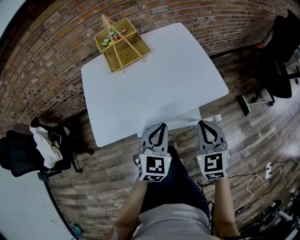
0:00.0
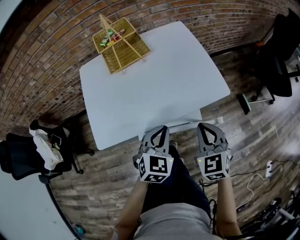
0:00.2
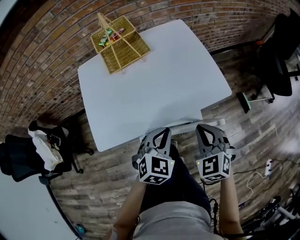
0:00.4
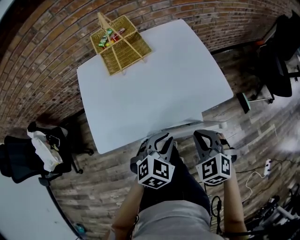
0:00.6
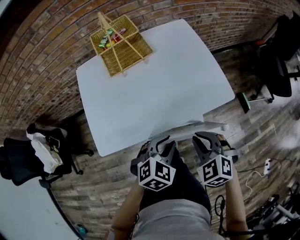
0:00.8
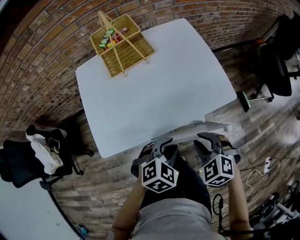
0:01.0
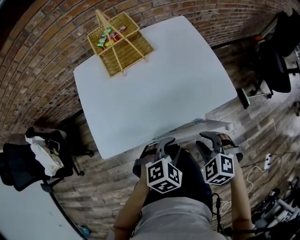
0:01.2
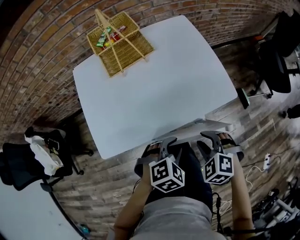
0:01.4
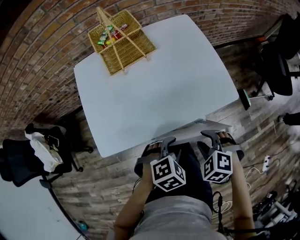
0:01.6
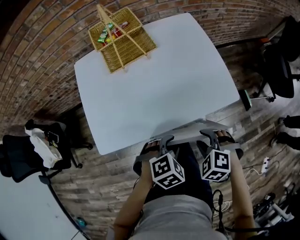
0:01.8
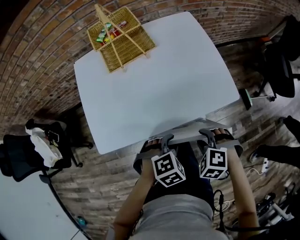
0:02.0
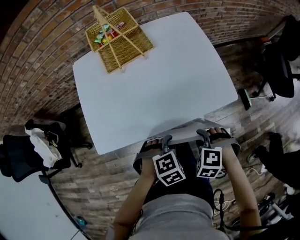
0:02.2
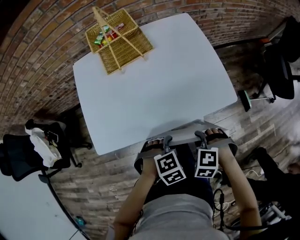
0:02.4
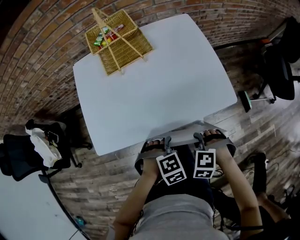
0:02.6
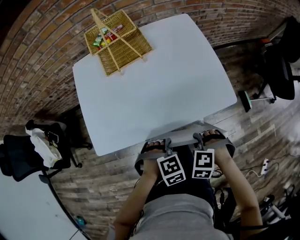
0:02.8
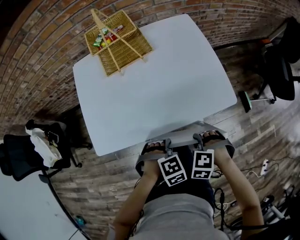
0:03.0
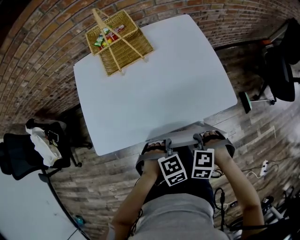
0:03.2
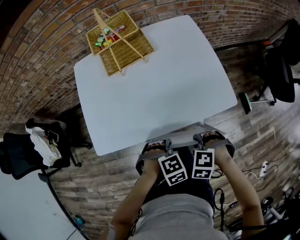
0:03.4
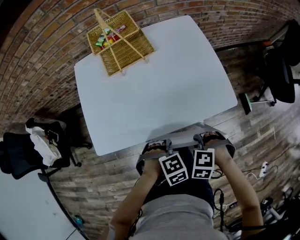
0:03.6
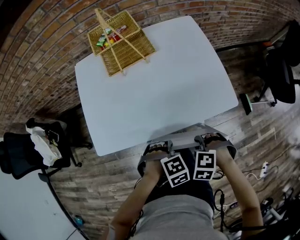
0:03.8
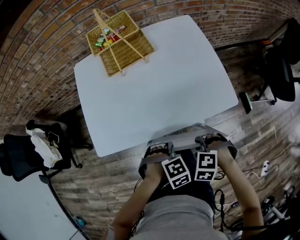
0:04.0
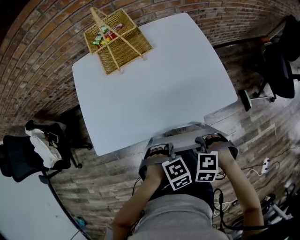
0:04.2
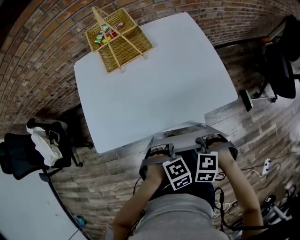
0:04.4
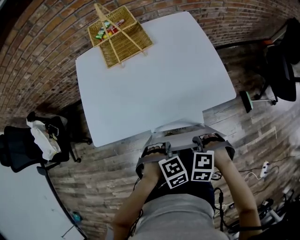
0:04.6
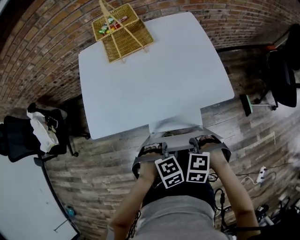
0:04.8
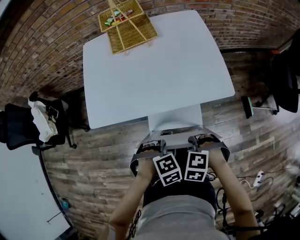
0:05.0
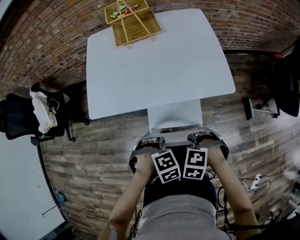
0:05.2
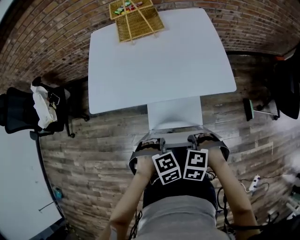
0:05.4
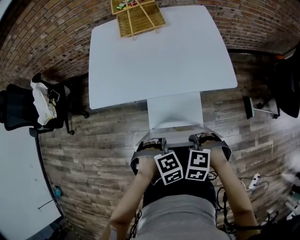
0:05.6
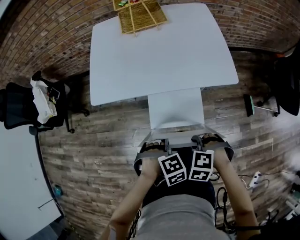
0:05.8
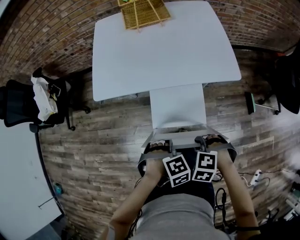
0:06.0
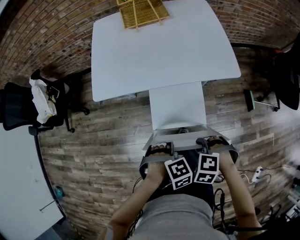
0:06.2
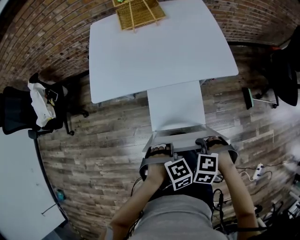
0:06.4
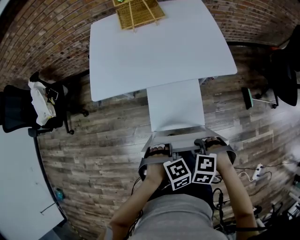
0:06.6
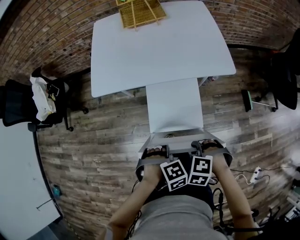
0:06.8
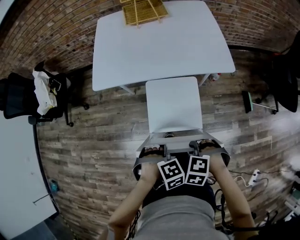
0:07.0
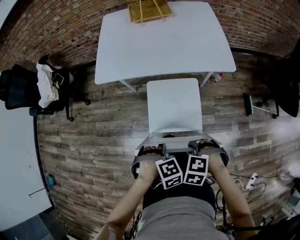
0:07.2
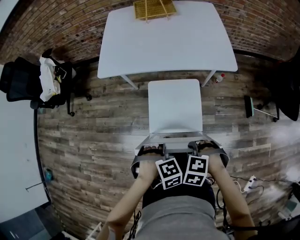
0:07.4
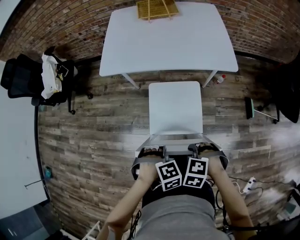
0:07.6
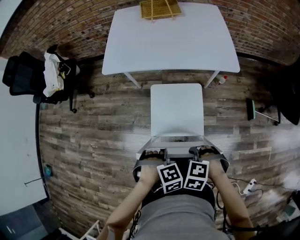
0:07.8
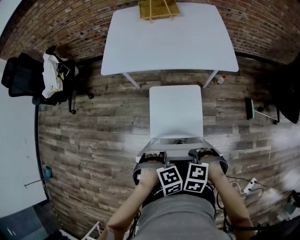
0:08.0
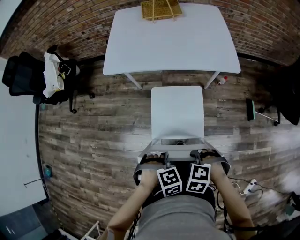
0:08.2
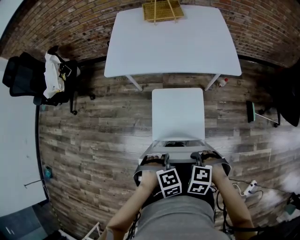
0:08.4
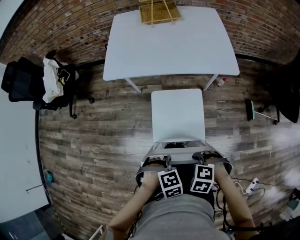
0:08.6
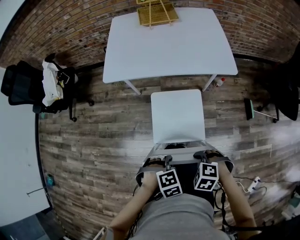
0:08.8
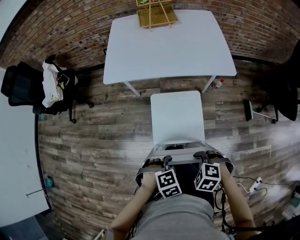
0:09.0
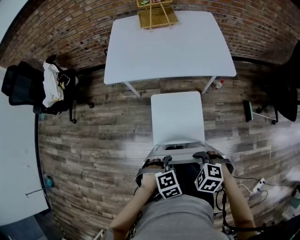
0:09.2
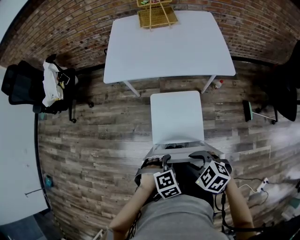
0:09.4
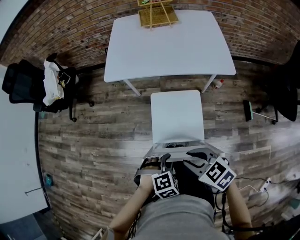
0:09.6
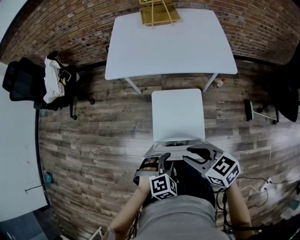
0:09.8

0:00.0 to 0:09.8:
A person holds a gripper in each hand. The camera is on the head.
0:00.0 to 0:01.4: Both grippers travel together downward, roughly 5 cm. The right gripper angles its fingers downward, by some 30 degrees, and opens its fingers. Meanwhile the left gripper tips its fingers downward by some 30 degrees, and opens its fingers.
0:01.4 to 0:02.8: Both grippers travel together downward, approximately 5 cm. The left gripper changes its angle by approximately 20 degrees. Meanwhile the right gripper rotates approximately 30 degrees.
0:02.8 to 0:04.2: There are only small adjustments of the grippers.
0:04.2 to 0:05.6: The right gripper changes place by approximately 15 cm. Meanwhile the left gripper moves some 15 cm.
0:05.6 to 0:07.0: The right gripper shifts by some 10 cm, while the left gripper moves roughly 10 cm.
0:07.0 to 0:08.4: The right gripper shifts by about 10 cm. Meanwhile the left gripper moves some 10 cm.
0:08.4 to 0:09.8: The right gripper shifts approximately 10 cm upward, and points its fingers some 50 degrees further upward. Meanwhile the left gripper changes its angle by roughly 20 degrees.

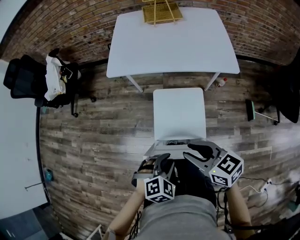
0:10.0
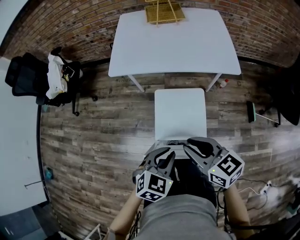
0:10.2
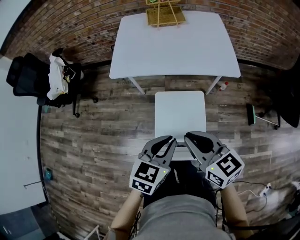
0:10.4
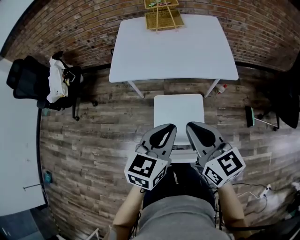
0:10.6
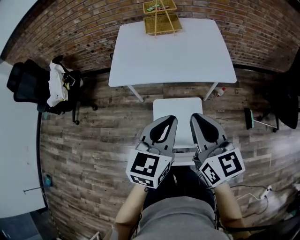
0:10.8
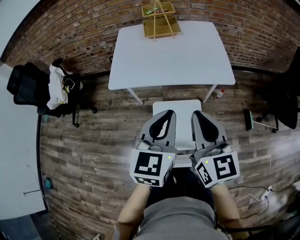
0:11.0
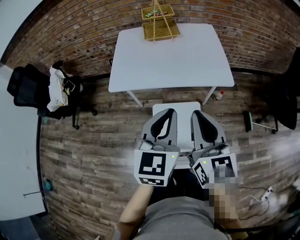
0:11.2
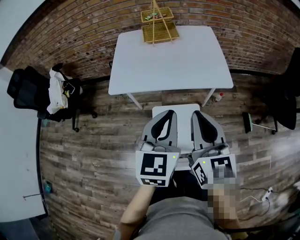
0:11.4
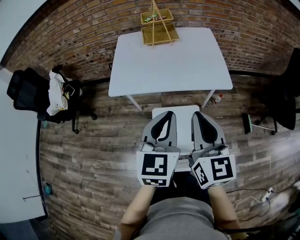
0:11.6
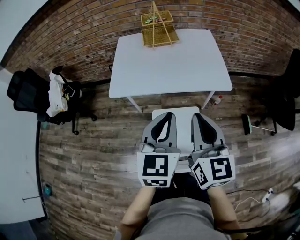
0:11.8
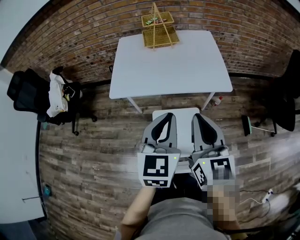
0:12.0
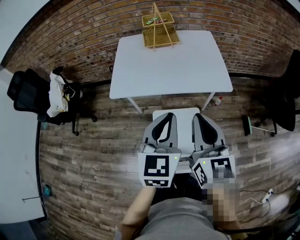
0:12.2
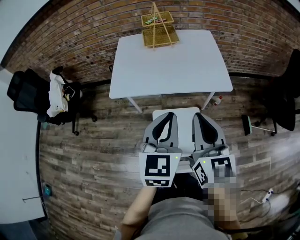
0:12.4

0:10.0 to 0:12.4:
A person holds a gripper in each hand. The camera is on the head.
0:10.0 to 0:11.2: The left gripper goes approximately 30 cm upward and forward, tips its fingers upward by about 40 degrees, and closes its fingers. Meanwhile the right gripper is displaced upward and forward by approximately 20 cm, changes its angle by about 50 degrees, and closes.
0:11.2 to 0:12.4: Neither gripper changes place.

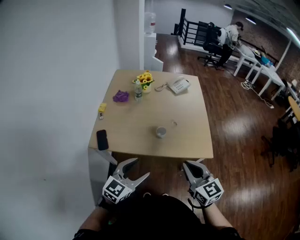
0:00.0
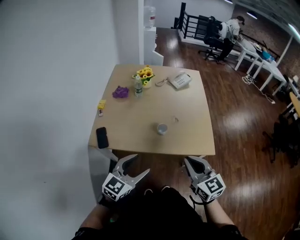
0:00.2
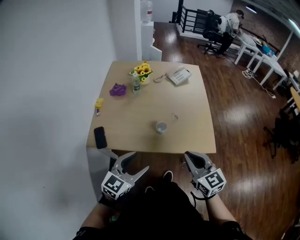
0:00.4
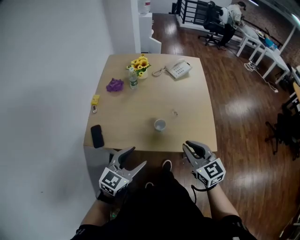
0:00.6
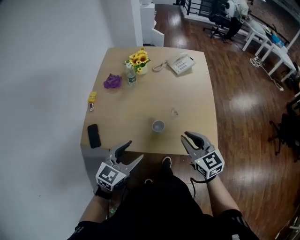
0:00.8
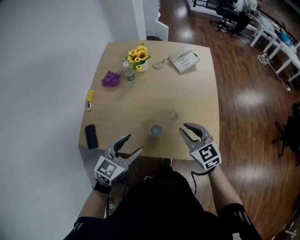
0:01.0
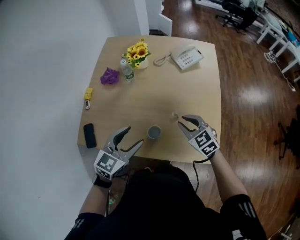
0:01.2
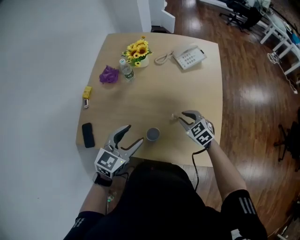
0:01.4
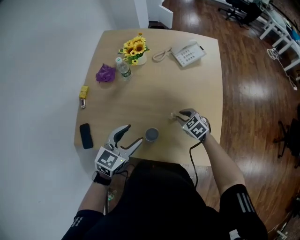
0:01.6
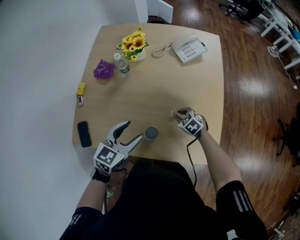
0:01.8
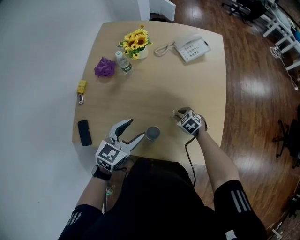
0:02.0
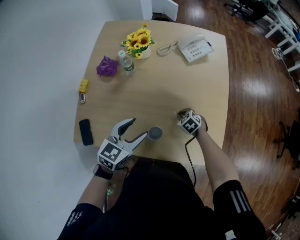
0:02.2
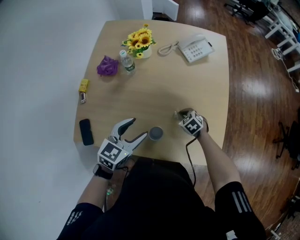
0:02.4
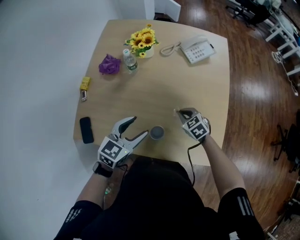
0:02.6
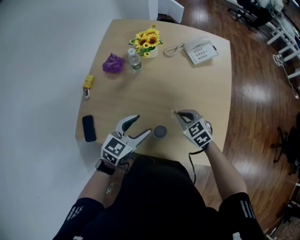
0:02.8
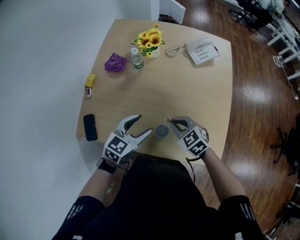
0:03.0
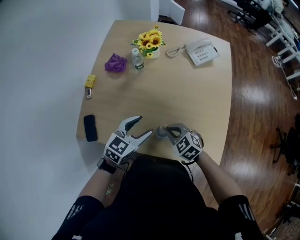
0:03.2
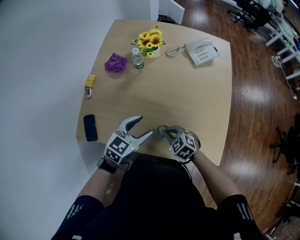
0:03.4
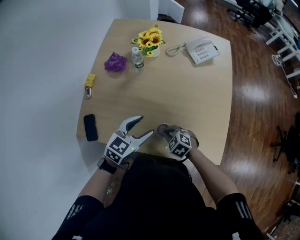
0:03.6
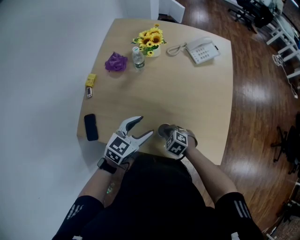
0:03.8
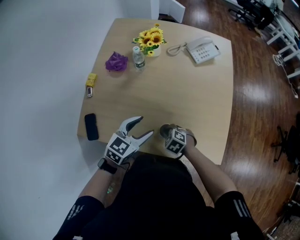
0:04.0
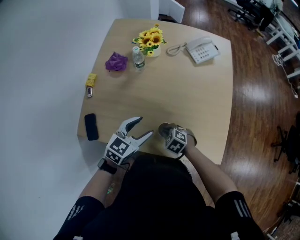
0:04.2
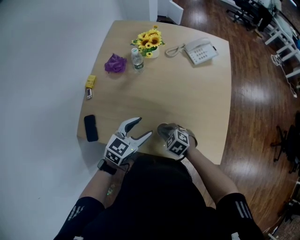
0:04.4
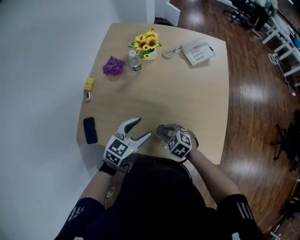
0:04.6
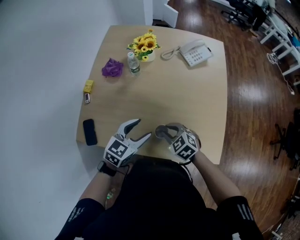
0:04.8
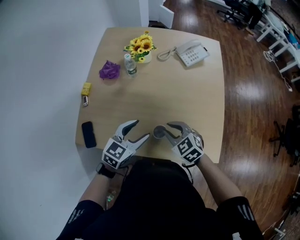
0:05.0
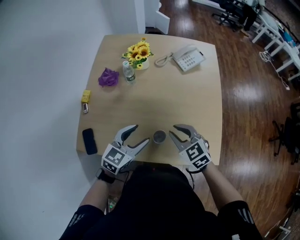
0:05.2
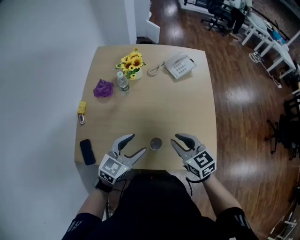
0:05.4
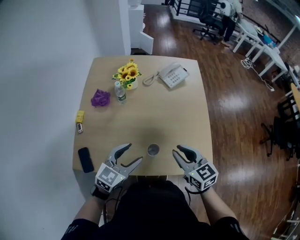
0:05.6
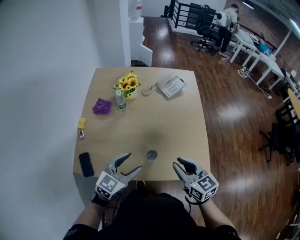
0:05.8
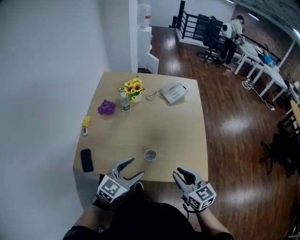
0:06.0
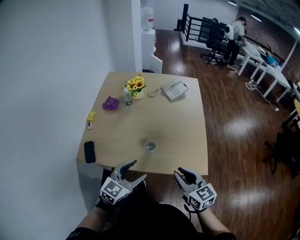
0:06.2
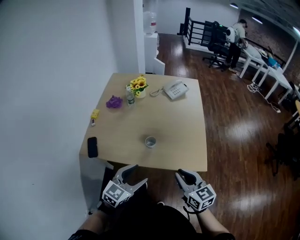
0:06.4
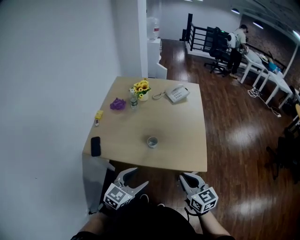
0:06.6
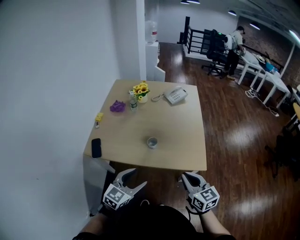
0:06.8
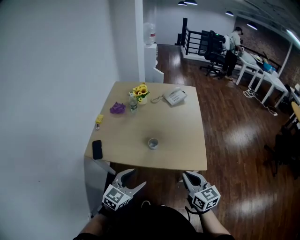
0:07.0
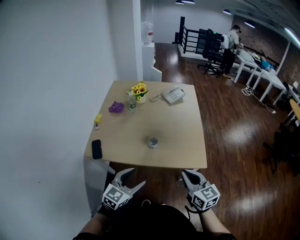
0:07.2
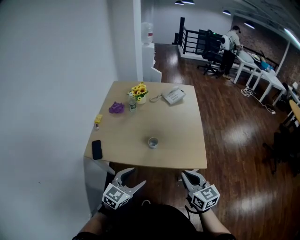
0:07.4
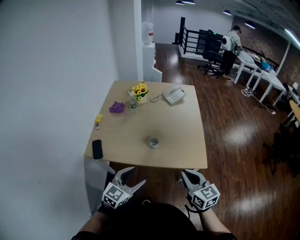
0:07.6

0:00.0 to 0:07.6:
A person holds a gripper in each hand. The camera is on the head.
0:00.0 to 0:01.6: The left gripper travels forward by about 35 cm. Meanwhile the right gripper is displaced forward and downward by roughly 50 cm, tips its fingers downward by some 40 degrees, and opens up.
0:01.6 to 0:03.0: The left gripper moves approximately 5 cm, while the right gripper is displaced to the left and upward by some 15 cm, and closes up.
0:03.0 to 0:04.6: The right gripper travels downward by about 5 cm, and opens up.
0:04.6 to 0:06.0: The right gripper goes approximately 25 cm upward, backward and to the right, and angles its fingers upward, by approximately 40 degrees; the left gripper moves backward and upward, some 15 cm.
0:06.0 to 0:07.6: Both grippers travel together backward, roughly 20 cm. The right gripper closes up.

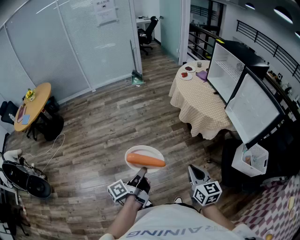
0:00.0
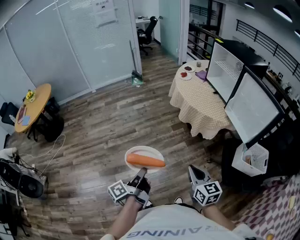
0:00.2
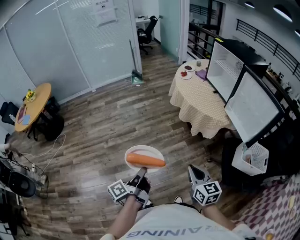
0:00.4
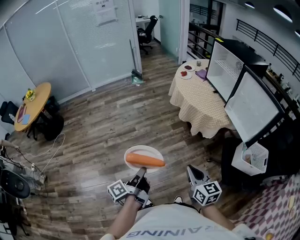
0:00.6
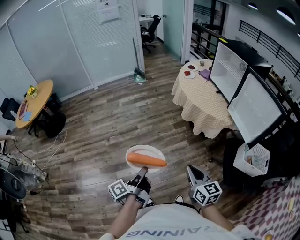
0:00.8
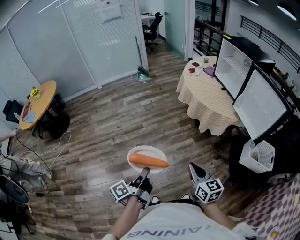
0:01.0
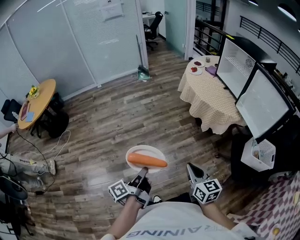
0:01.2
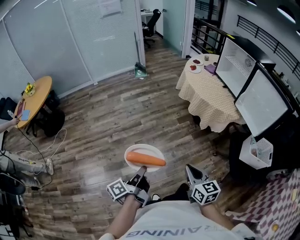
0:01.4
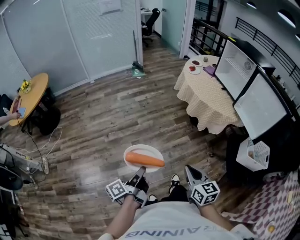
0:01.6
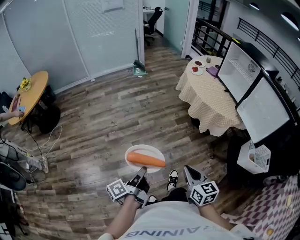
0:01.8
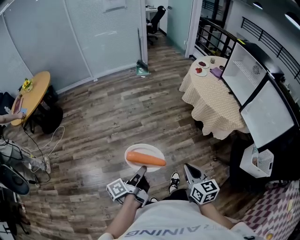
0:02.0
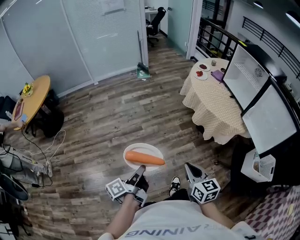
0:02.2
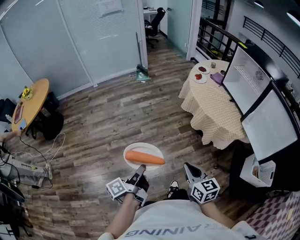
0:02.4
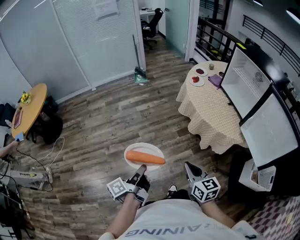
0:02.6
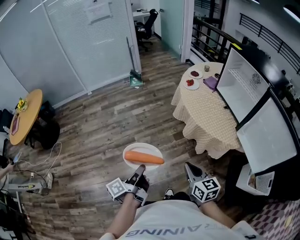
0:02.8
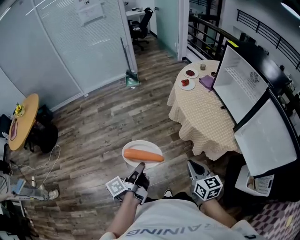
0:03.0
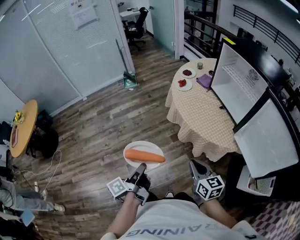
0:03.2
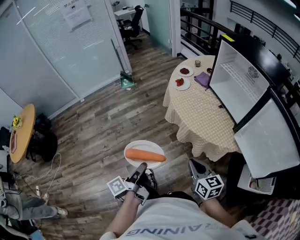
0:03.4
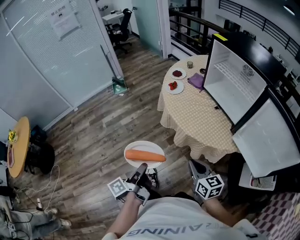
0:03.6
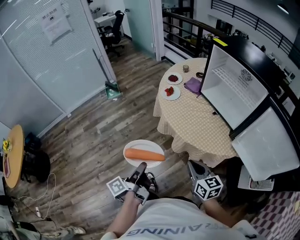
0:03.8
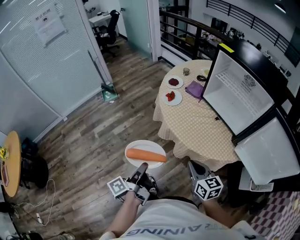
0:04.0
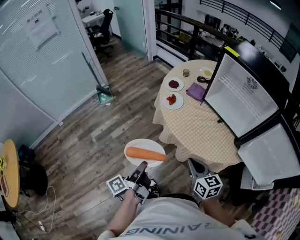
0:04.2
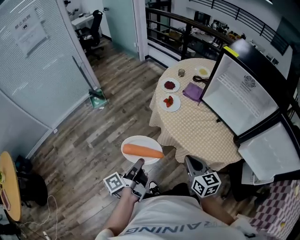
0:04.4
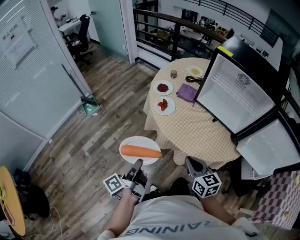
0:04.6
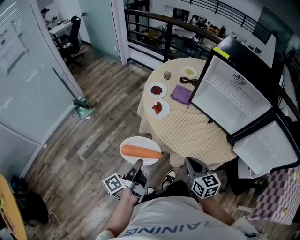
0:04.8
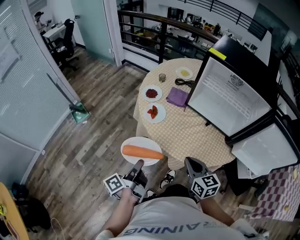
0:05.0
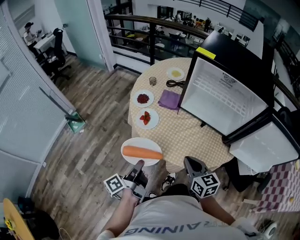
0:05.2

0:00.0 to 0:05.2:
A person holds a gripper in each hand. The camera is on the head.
0:00.0 to 0:01.8: The right gripper shifts by some 10 cm.
0:01.8 to 0:03.4: The right gripper moves roughly 35 cm.
0:03.4 to 0:05.2: The right gripper changes place by approximately 25 cm, and rotates about 30 degrees.
